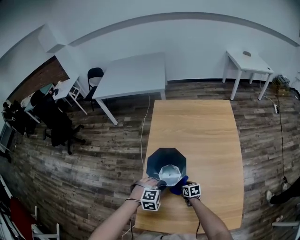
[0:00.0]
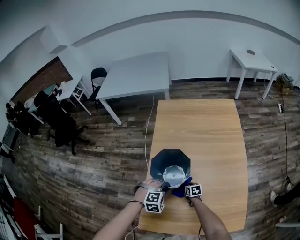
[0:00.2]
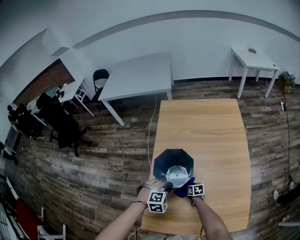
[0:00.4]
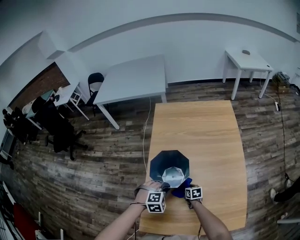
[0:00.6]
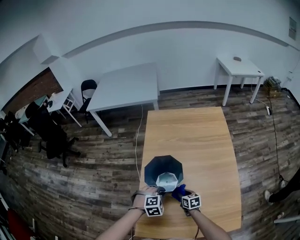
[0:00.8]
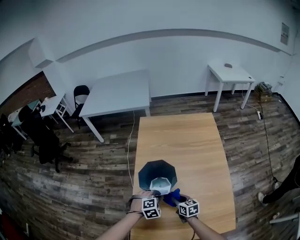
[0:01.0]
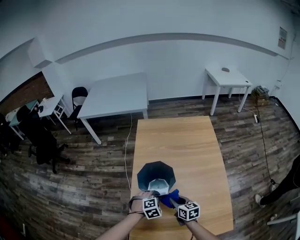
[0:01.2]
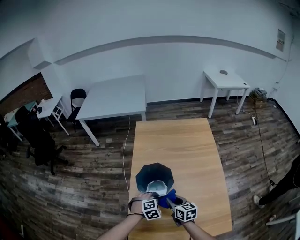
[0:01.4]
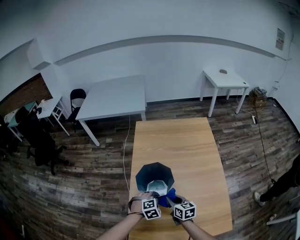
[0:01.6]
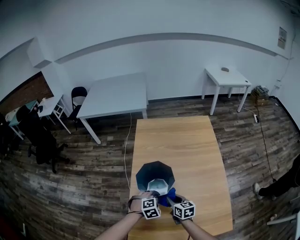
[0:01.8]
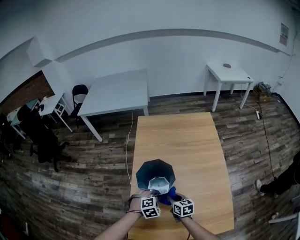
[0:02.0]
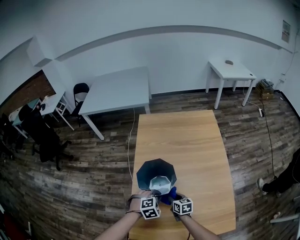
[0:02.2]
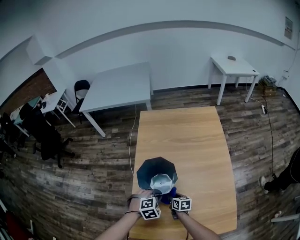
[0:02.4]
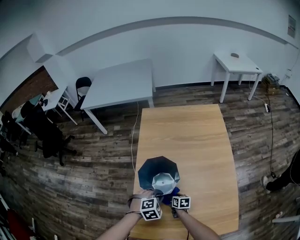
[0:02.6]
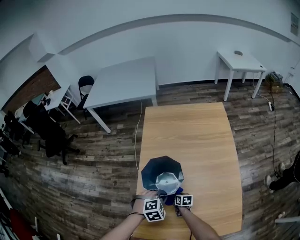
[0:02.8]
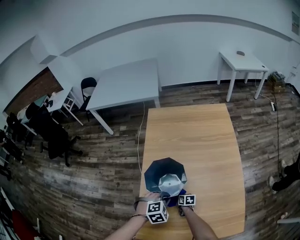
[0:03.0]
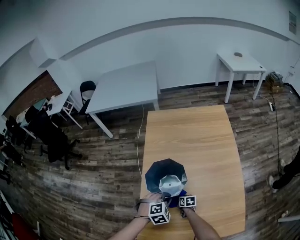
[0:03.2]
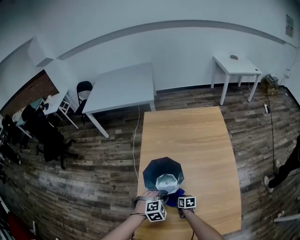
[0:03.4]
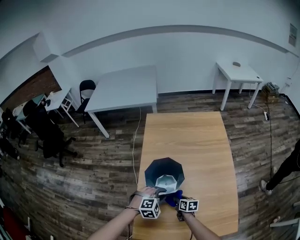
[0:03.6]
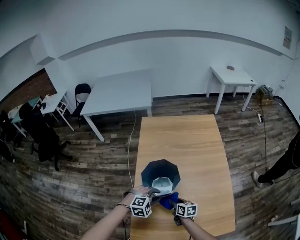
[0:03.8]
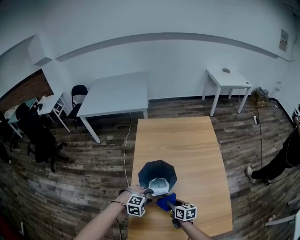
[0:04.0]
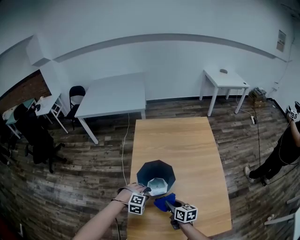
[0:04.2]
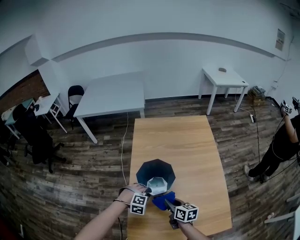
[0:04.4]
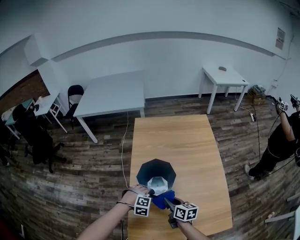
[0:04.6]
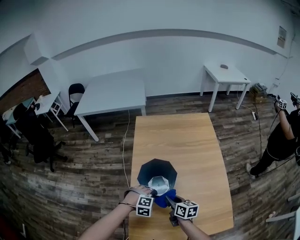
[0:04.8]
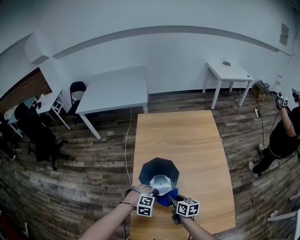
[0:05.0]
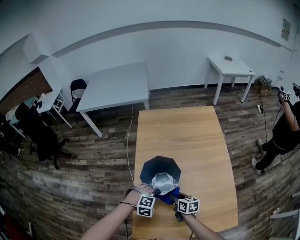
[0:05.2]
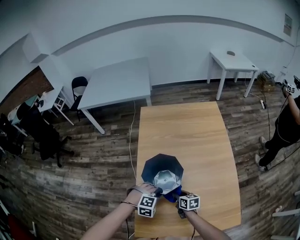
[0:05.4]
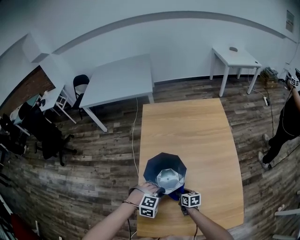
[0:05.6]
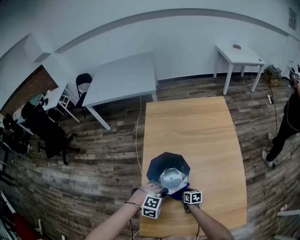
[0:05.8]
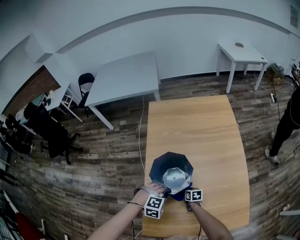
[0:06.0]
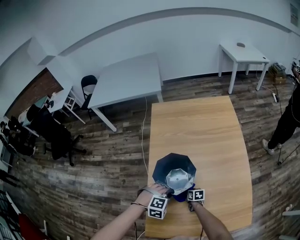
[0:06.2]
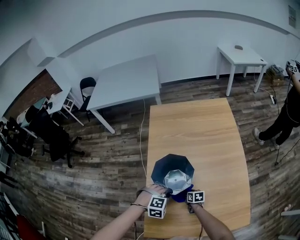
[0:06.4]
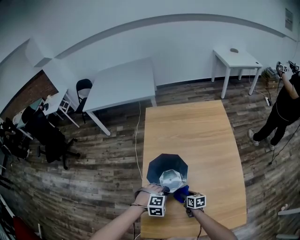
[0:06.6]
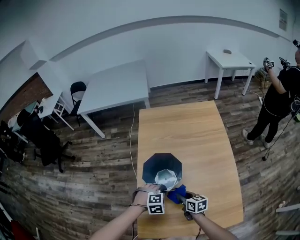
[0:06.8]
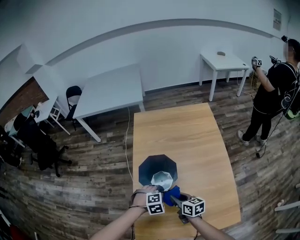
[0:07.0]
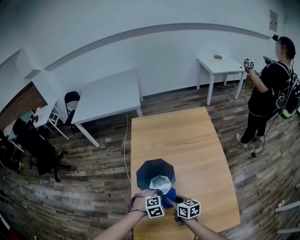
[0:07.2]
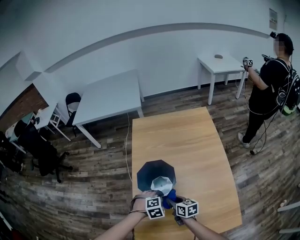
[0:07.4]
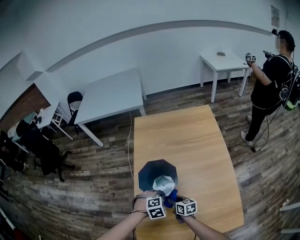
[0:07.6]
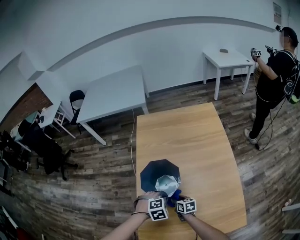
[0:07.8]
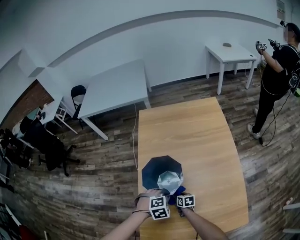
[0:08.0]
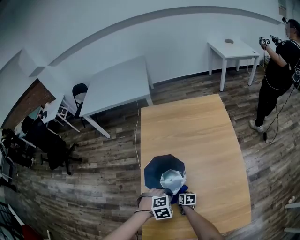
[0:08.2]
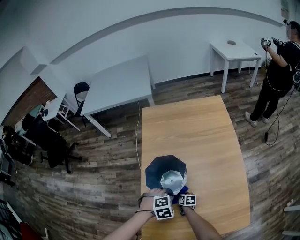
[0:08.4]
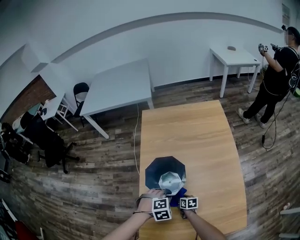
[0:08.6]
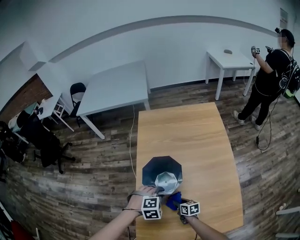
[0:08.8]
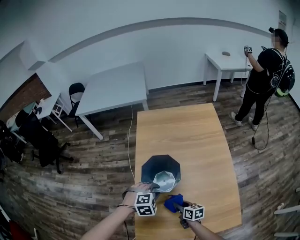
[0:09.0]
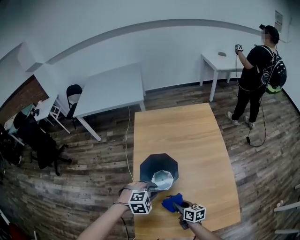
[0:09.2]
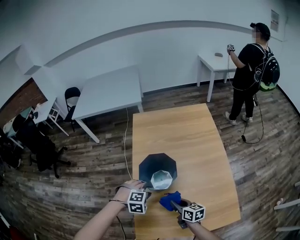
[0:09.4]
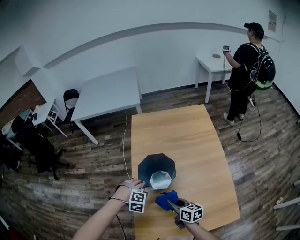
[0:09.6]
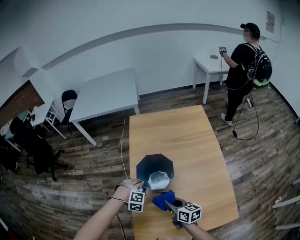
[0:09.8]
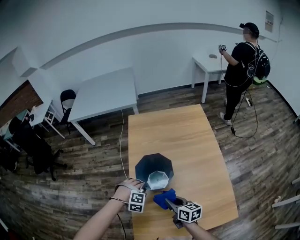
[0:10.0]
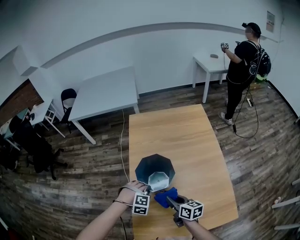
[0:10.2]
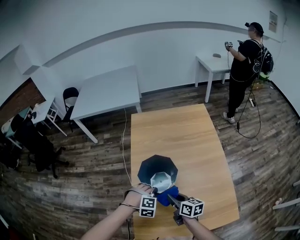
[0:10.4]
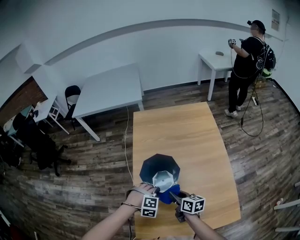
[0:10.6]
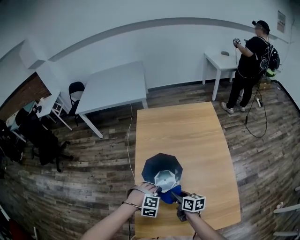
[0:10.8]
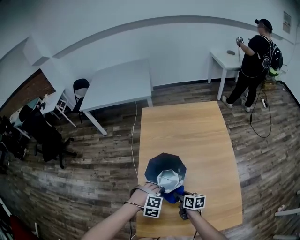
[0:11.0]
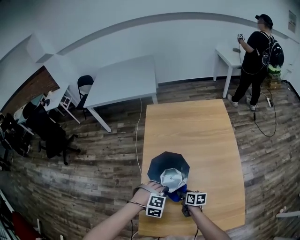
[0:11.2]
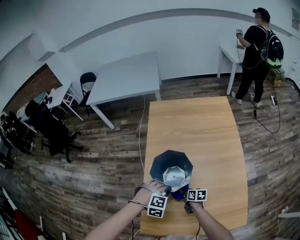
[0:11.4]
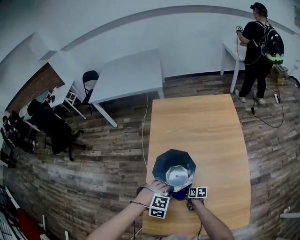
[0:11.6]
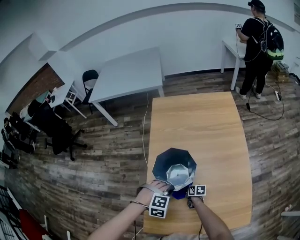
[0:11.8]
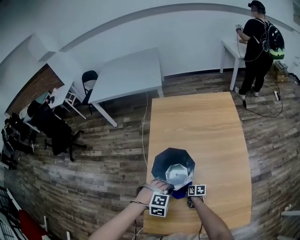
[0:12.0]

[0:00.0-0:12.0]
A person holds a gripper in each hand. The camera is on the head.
0:00.0 to 0:01.6: The right gripper heads upward, covering roughly 20 cm, and swivels about 20 degrees.
0:01.6 to 0:03.0: The right gripper moves downward, roughly 25 cm, and turns by about 30 degrees.
0:03.0 to 0:04.4: The left gripper shifts some 5 cm to the left, swivels approximately 30 degrees, and opens, then closes again. Meanwhile the right gripper is displaced upward by roughly 30 cm, and swivels approximately 20 degrees.
0:04.4 to 0:06.0: The right gripper is displaced downward by some 25 cm, and changes its angle by roughly 20 degrees.
0:06.0 to 0:07.6: The right gripper is displaced upward by roughly 15 cm. The left gripper turns by roughly 20 degrees.
0:07.6 to 0:09.0: The right gripper travels backward by some 5 cm, and reaches approximately 15 cm downward, then returns; the left gripper moves upward, approximately 5 cm.
0:09.0 to 0:10.4: The left gripper rotates some 20 degrees, while the right gripper is displaced upward by approximately 10 cm.
0:10.4 to 0:12.0: The right gripper is displaced downward by about 30 cm, and turns by approximately 30 degrees.

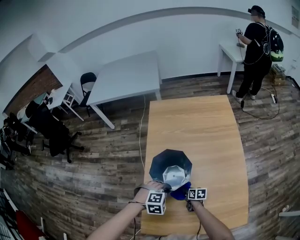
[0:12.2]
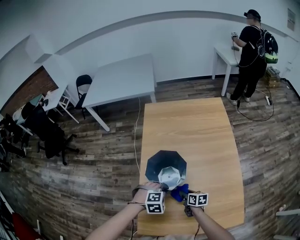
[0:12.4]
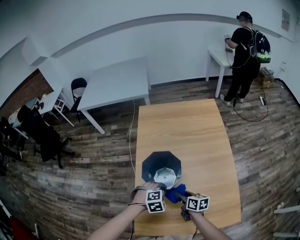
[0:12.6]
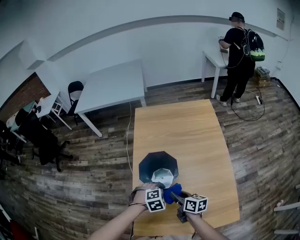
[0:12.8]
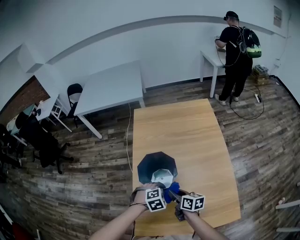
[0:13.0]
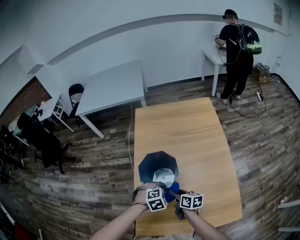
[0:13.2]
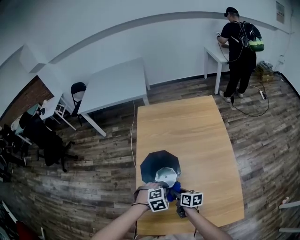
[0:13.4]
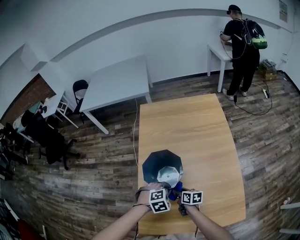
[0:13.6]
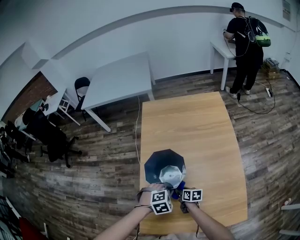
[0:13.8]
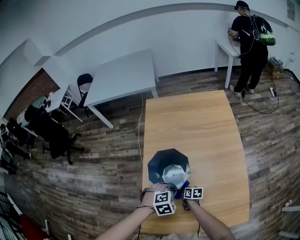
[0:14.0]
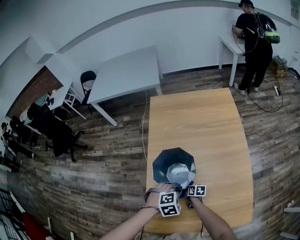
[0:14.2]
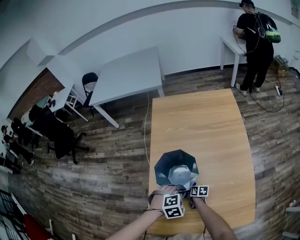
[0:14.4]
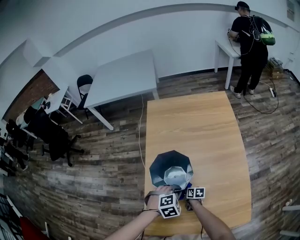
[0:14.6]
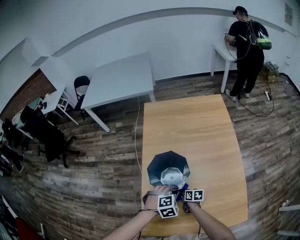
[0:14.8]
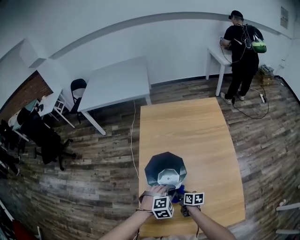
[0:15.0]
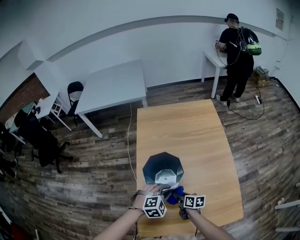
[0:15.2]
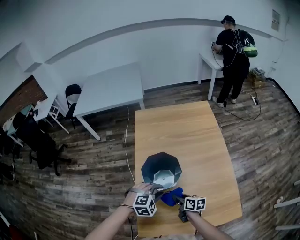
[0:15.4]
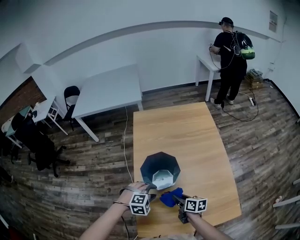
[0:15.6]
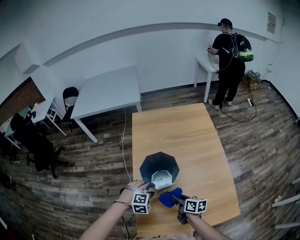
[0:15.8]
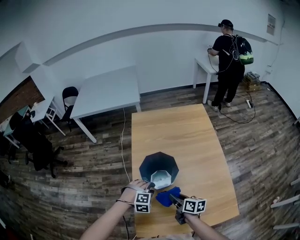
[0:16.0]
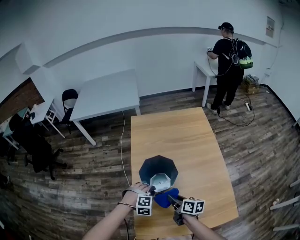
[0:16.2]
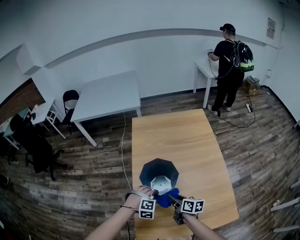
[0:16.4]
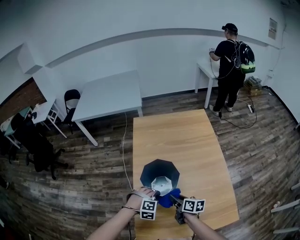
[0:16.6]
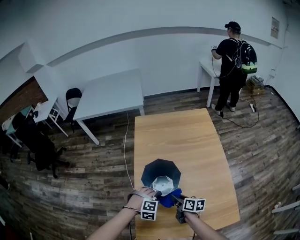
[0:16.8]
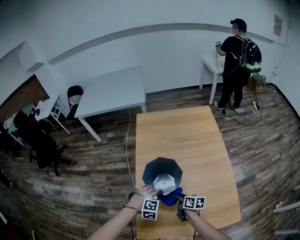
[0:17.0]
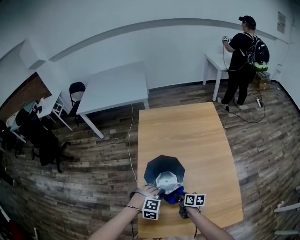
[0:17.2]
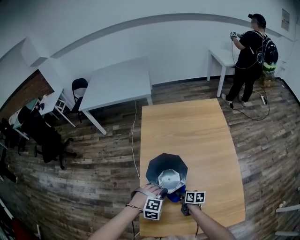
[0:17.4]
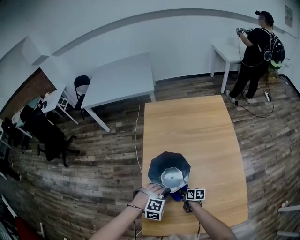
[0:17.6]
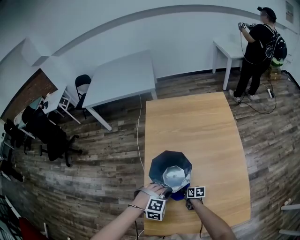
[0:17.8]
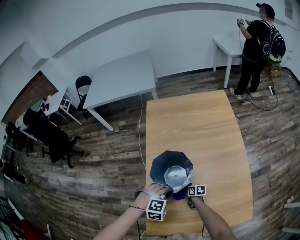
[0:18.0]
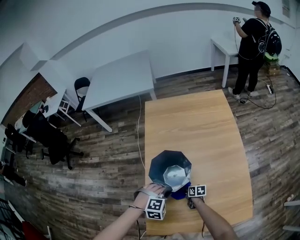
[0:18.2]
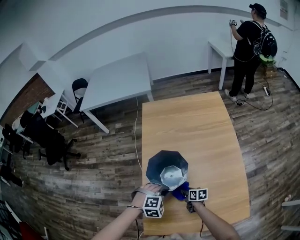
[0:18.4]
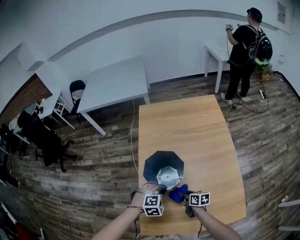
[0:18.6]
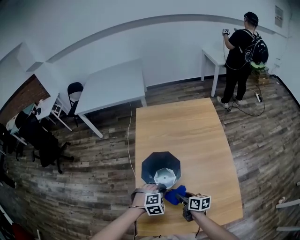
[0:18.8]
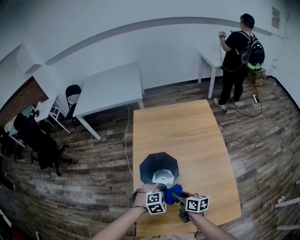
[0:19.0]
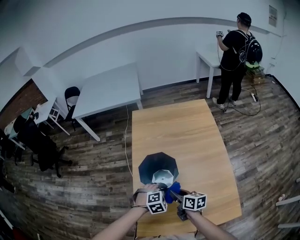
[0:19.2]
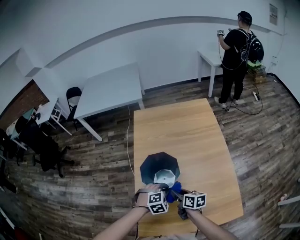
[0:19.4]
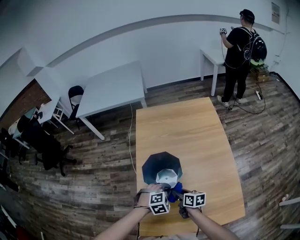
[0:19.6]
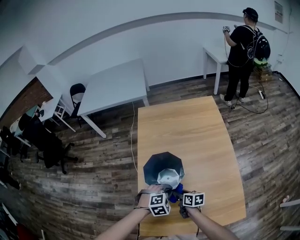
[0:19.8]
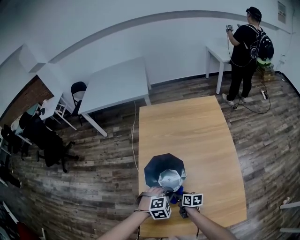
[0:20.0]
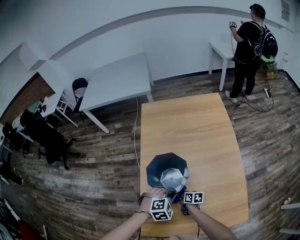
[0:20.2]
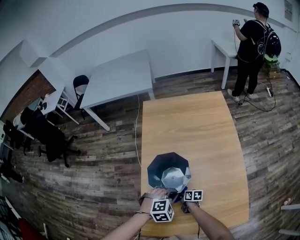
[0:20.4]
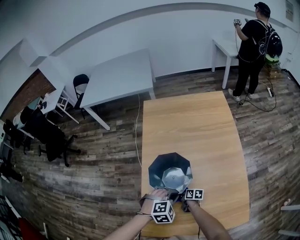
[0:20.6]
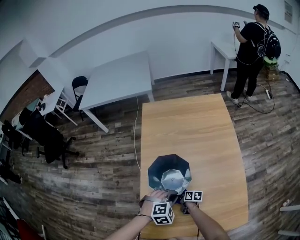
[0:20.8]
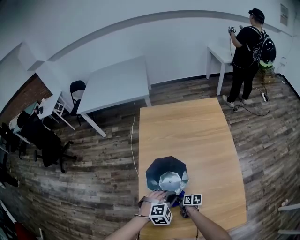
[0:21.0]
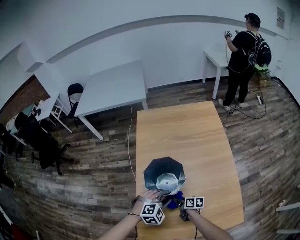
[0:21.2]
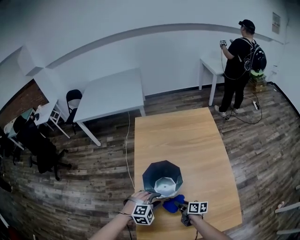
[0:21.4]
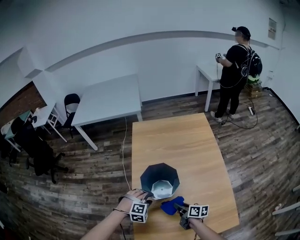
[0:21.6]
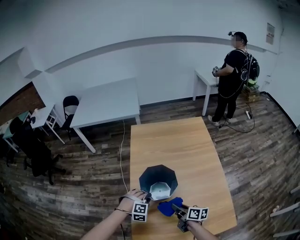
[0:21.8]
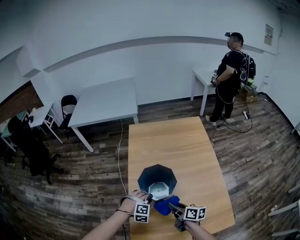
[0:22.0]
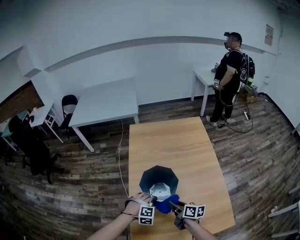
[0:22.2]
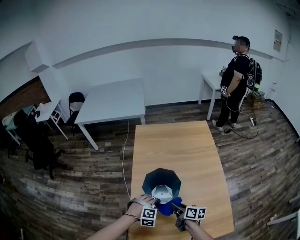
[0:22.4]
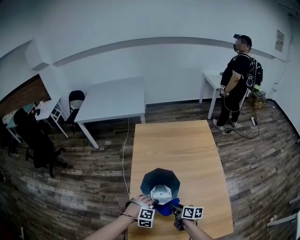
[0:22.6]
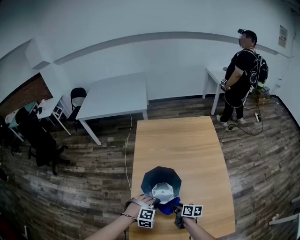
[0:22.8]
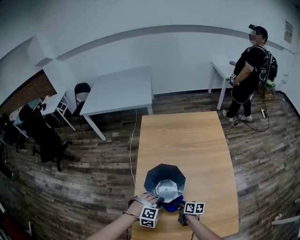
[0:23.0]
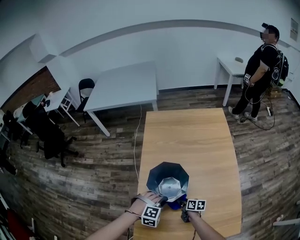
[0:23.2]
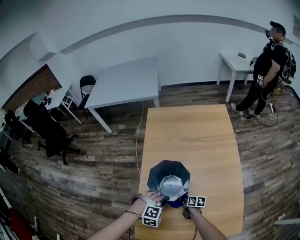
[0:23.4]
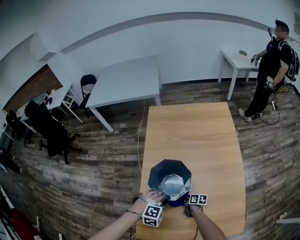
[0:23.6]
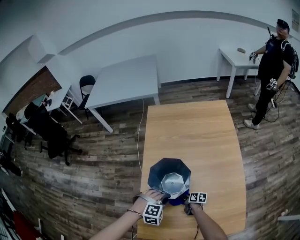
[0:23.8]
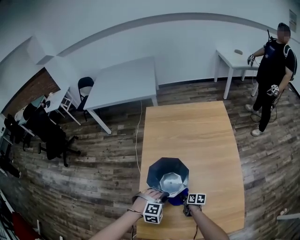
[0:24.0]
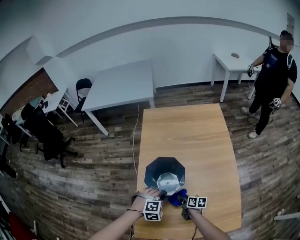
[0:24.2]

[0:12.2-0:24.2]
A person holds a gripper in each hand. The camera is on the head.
0:12.2 to 0:13.8: The right gripper goes upward and returns, some 20 cm each way.
0:13.8 to 0:15.2: The right gripper goes roughly 10 cm upward.
0:15.2 to 0:16.6: The left gripper goes some 5 cm to the left, and changes its angle by about 20 degrees, while the right gripper heads upward, covering approximately 10 cm.
0:16.6 to 0:18.2: The right gripper travels downward by about 25 cm, and swivels roughly 20 degrees.
0:18.2 to 0:19.8: The left gripper travels to the right by approximately 5 cm, while the right gripper goes approximately 15 cm upward.
0:19.8 to 0:21.2: The right gripper heads downward, covering roughly 10 cm.
0:21.2 to 0:22.6: The right gripper moves upward, roughly 15 cm. Meanwhile the left gripper changes its angle by some 20 degrees.
0:22.6 to 0:24.2: The right gripper moves downward, some 10 cm.
